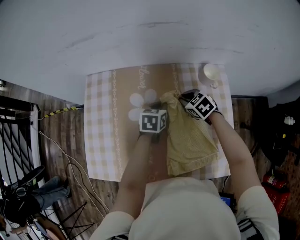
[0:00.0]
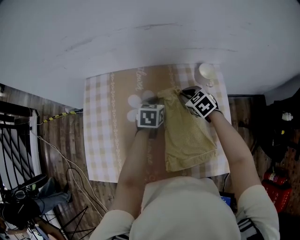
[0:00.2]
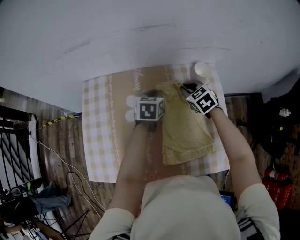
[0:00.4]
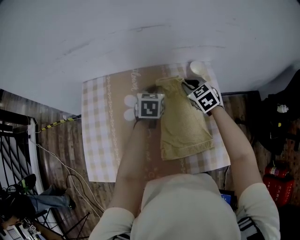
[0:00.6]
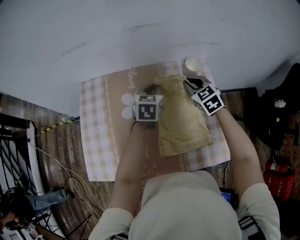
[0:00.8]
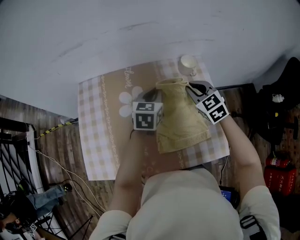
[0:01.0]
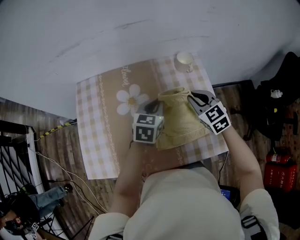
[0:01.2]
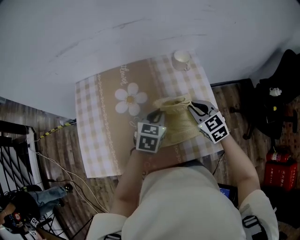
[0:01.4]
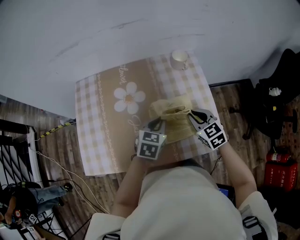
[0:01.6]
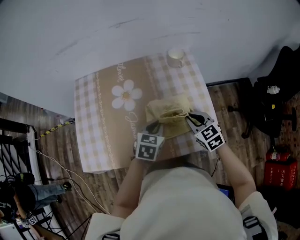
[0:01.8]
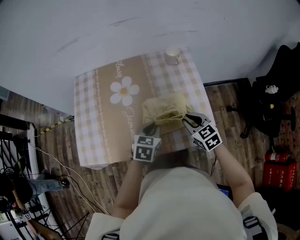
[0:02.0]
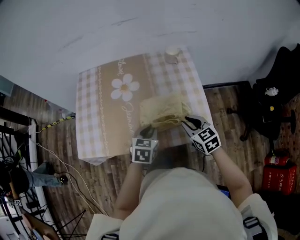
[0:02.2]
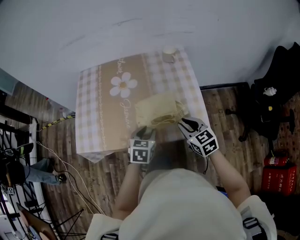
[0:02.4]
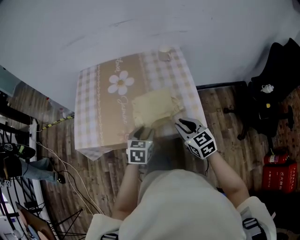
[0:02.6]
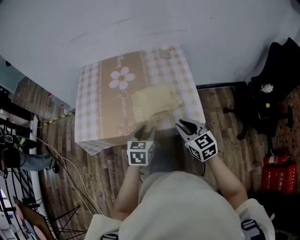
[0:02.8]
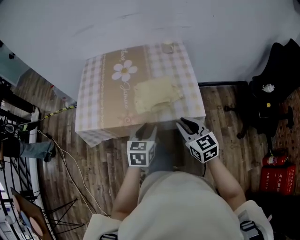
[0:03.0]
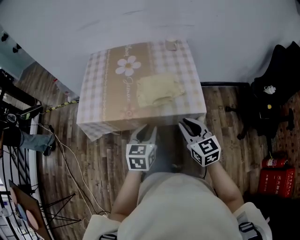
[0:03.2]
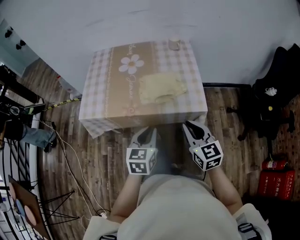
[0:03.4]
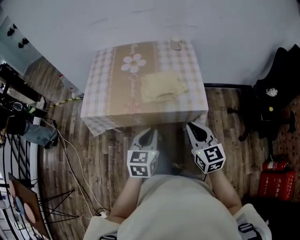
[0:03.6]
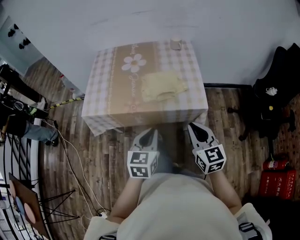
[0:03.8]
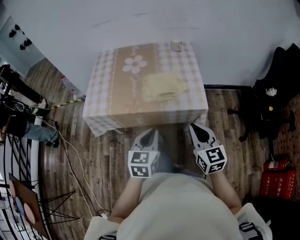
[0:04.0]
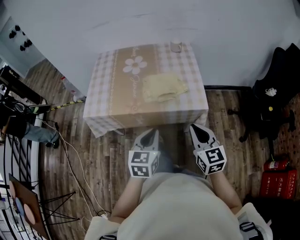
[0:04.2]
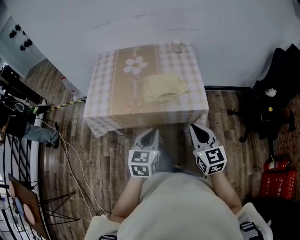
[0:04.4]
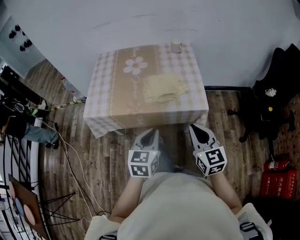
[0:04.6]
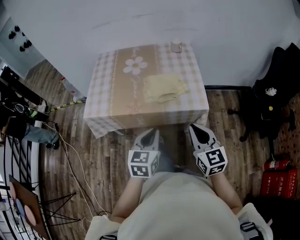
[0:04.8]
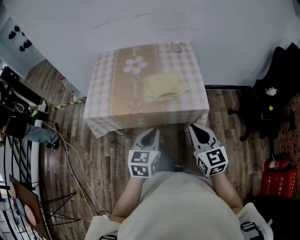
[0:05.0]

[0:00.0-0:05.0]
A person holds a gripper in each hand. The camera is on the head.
0:00.0 to 0:01.6: The right gripper is displaced backward, to the right and upward by approximately 25 cm, and turns by approximately 30 degrees. The left gripper shifts some 20 cm backward and upward, and rotates roughly 20 degrees.
0:01.6 to 0:03.4: Both grippers move backward, some 30 cm. The left gripper rotates approximately 20 degrees, and opens, then closes again.
0:03.4 to 0:05.0: The right gripper changes place by roughly 5 cm.

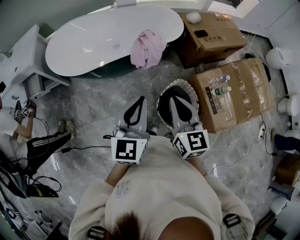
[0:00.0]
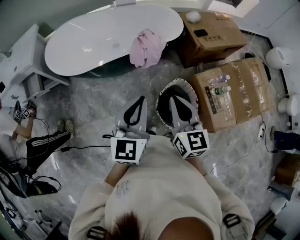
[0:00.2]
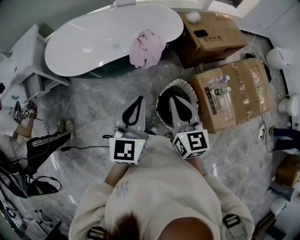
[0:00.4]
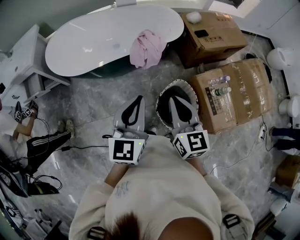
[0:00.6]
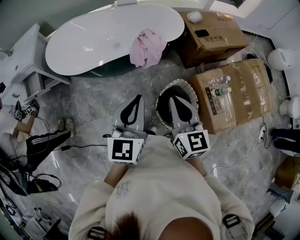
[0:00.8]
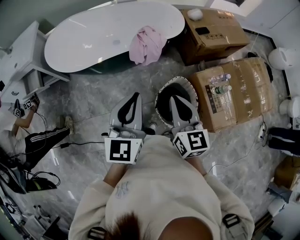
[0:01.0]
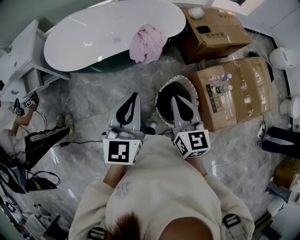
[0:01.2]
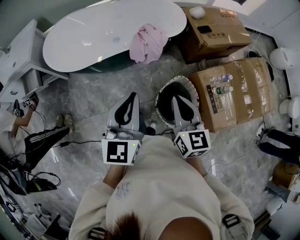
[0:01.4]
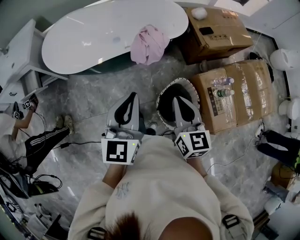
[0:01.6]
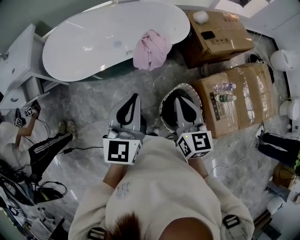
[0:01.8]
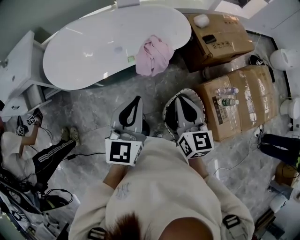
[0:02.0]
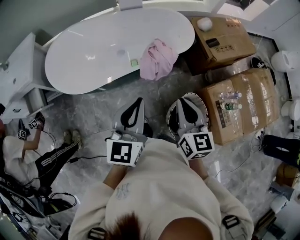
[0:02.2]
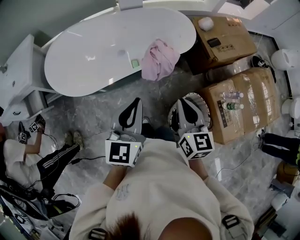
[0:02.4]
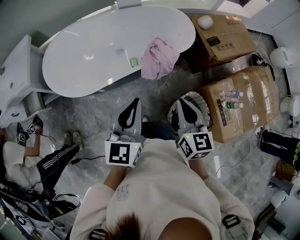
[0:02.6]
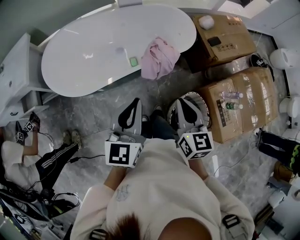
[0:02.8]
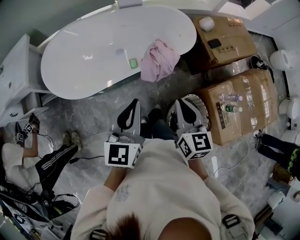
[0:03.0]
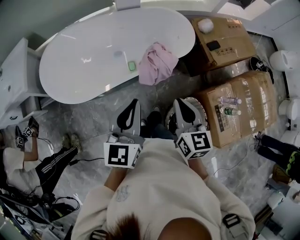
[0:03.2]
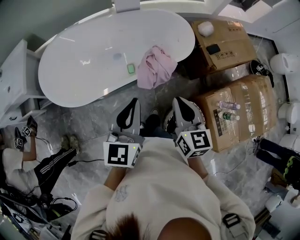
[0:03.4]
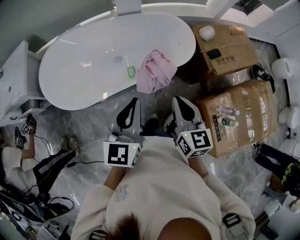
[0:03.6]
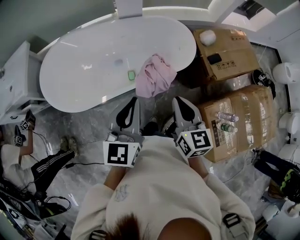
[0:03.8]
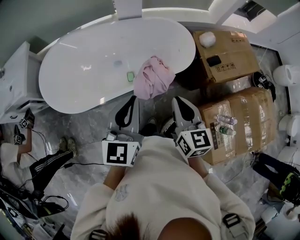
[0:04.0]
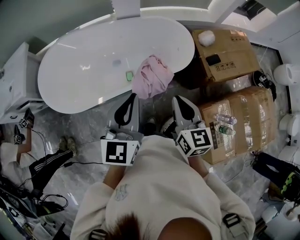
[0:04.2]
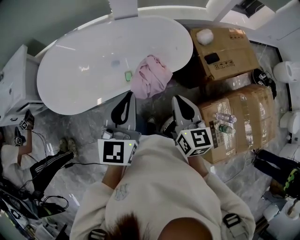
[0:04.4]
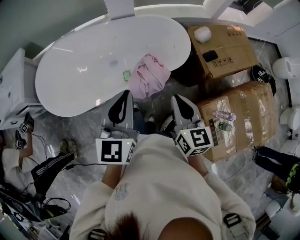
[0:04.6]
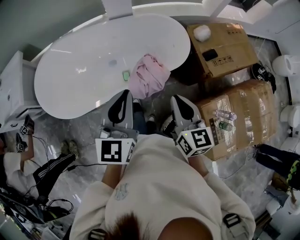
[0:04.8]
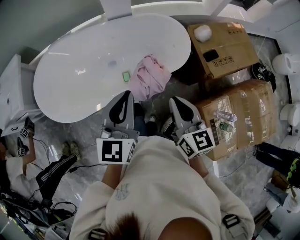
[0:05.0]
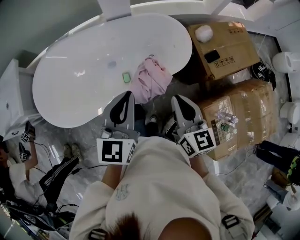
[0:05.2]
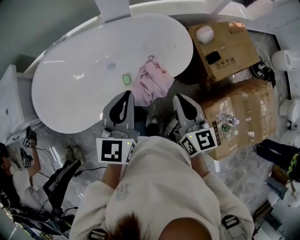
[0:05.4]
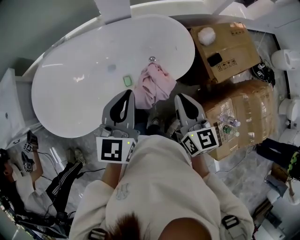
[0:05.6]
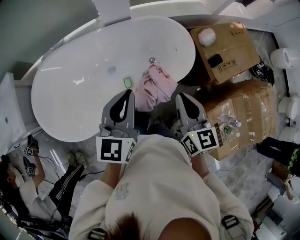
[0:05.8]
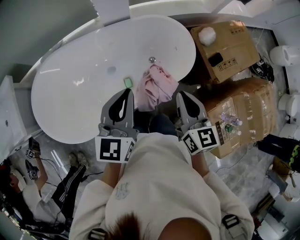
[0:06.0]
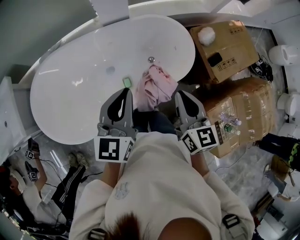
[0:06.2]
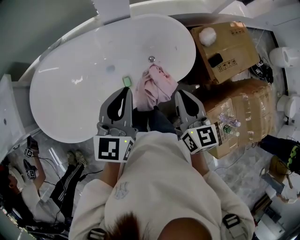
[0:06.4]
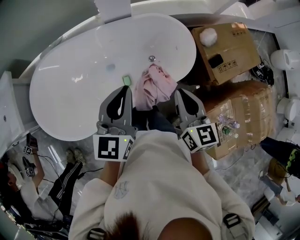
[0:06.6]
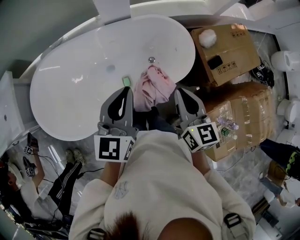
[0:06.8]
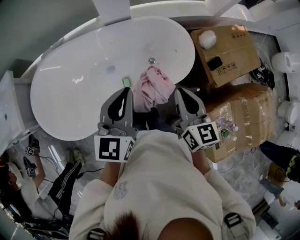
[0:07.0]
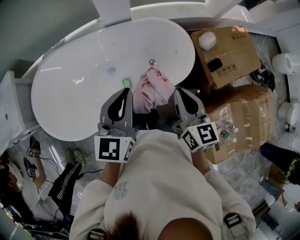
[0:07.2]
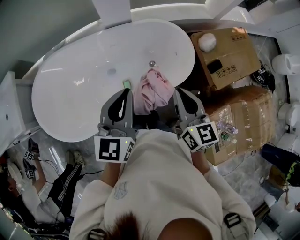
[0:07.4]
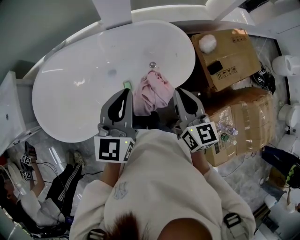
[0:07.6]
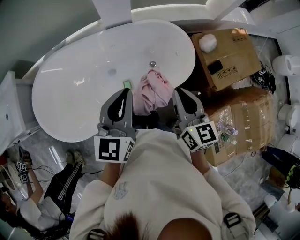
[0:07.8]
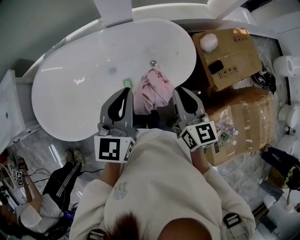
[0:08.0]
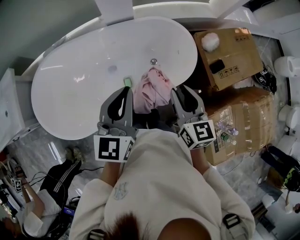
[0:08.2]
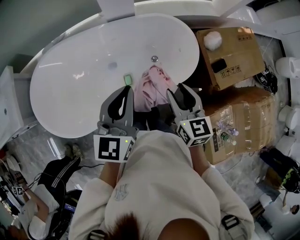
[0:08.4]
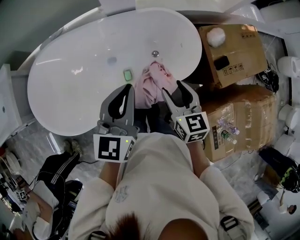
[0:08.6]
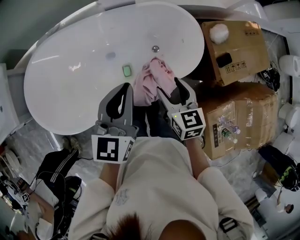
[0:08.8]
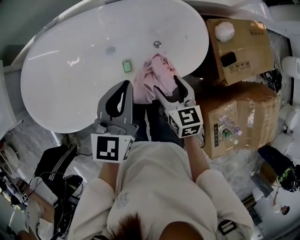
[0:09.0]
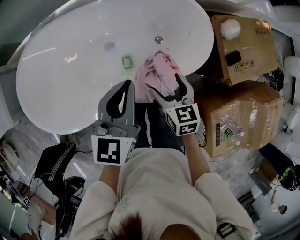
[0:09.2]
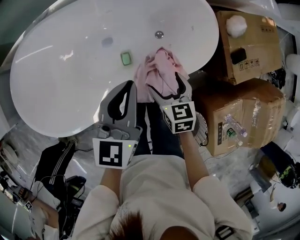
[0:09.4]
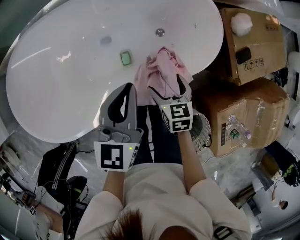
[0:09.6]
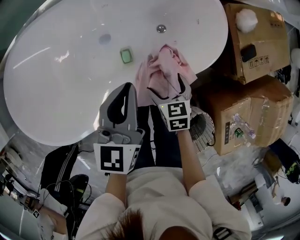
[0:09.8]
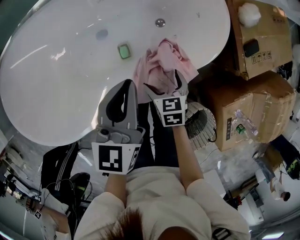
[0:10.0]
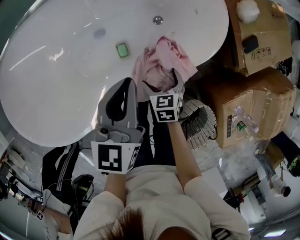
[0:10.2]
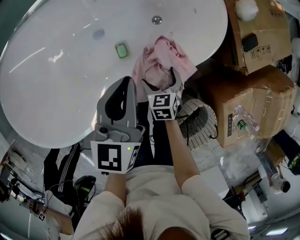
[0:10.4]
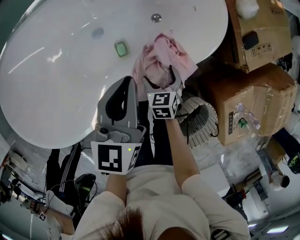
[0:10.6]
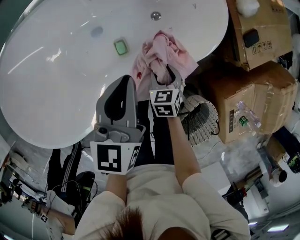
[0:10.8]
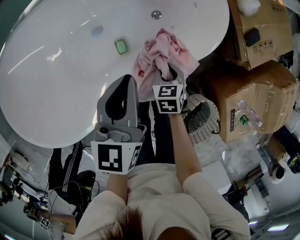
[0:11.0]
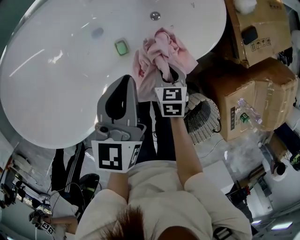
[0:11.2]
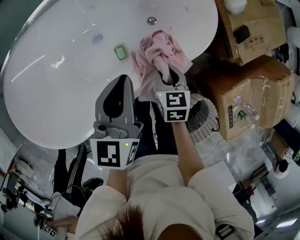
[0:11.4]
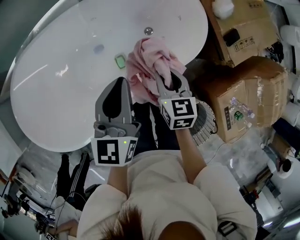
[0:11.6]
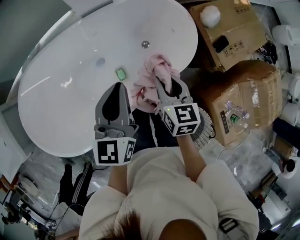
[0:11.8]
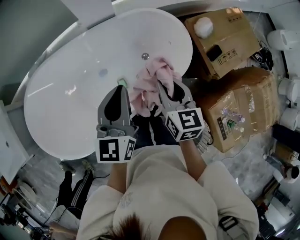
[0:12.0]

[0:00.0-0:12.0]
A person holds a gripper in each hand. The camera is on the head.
0:00.0 to 0:01.6: Both grippers move forward, approximately 5 cm.
0:01.6 to 0:03.0: The two grippers go some 20 cm forward and to the left.
0:03.0 to 0:04.4: The two grippers go some 15 cm forward and to the right.
0:04.4 to 0:06.0: Both grippers move forward, about 20 cm.
0:06.0 to 0:07.6: The grippers stay close to where they were, moving slightly.
0:07.6 to 0:09.0: The right gripper shifts roughly 15 cm downward, rotates about 20 degrees, and opens; the left gripper is displaced downward by about 10 cm.
0:09.0 to 0:10.4: The left gripper heads downward, covering roughly 15 cm. The right gripper is displaced downward by approximately 30 cm, rotates about 20 degrees, and opens up.
0:10.4 to 0:12.0: The left gripper shifts roughly 15 cm upward; the right gripper goes some 35 cm upward, tilts its fingers some 30 degrees upward, and closes up.

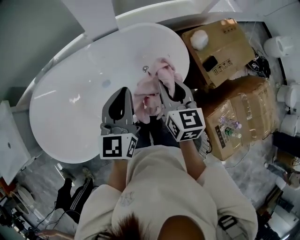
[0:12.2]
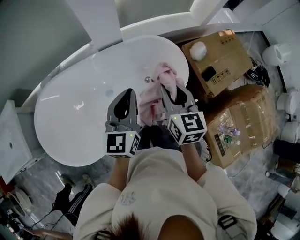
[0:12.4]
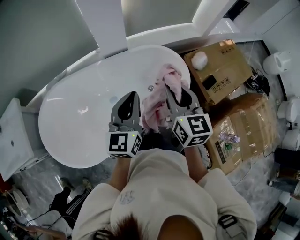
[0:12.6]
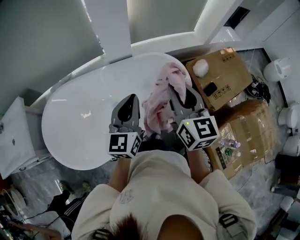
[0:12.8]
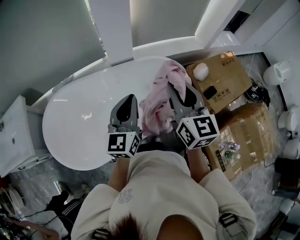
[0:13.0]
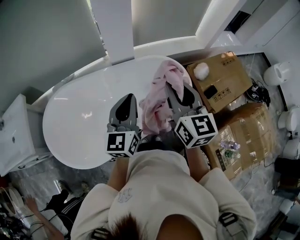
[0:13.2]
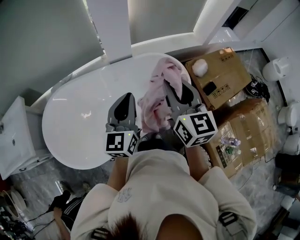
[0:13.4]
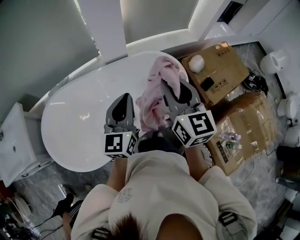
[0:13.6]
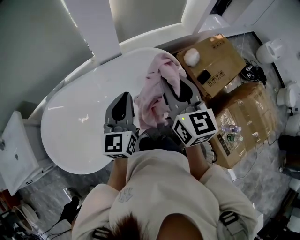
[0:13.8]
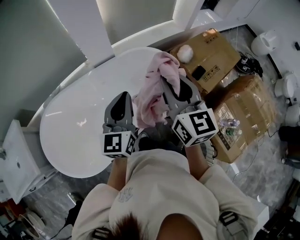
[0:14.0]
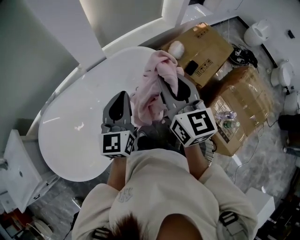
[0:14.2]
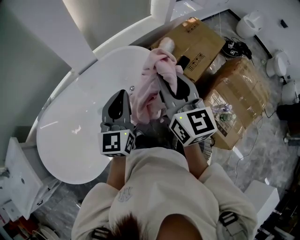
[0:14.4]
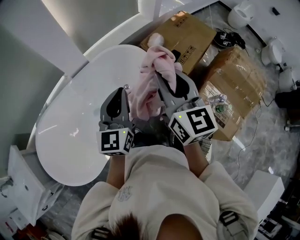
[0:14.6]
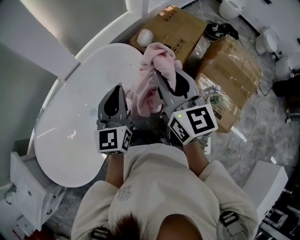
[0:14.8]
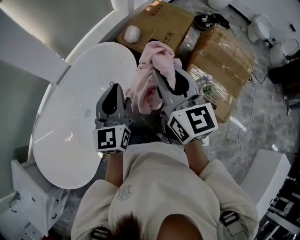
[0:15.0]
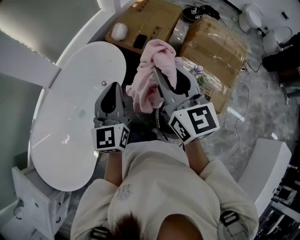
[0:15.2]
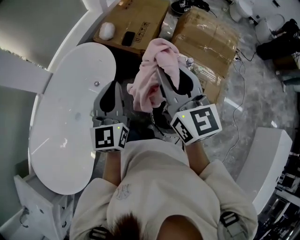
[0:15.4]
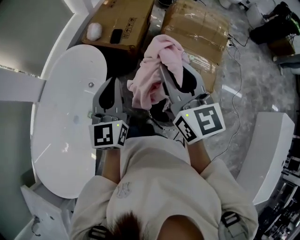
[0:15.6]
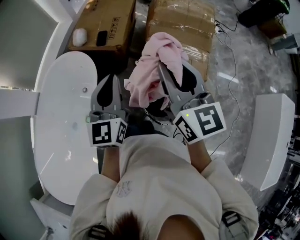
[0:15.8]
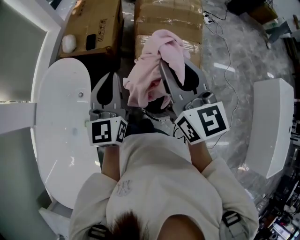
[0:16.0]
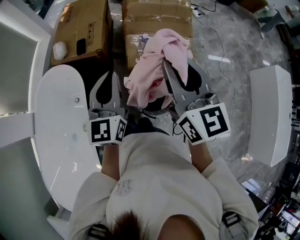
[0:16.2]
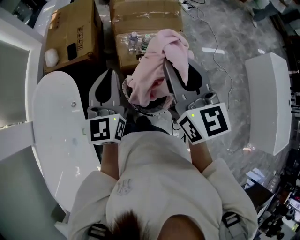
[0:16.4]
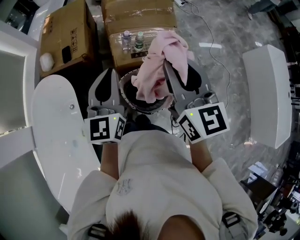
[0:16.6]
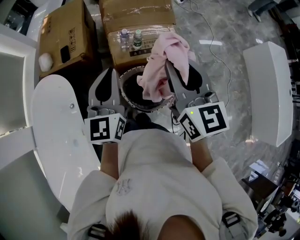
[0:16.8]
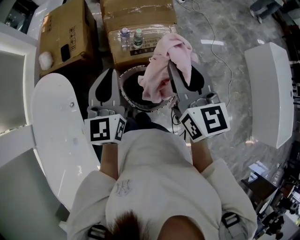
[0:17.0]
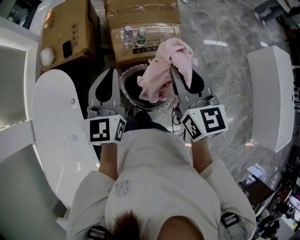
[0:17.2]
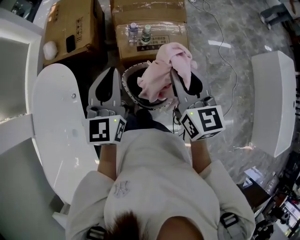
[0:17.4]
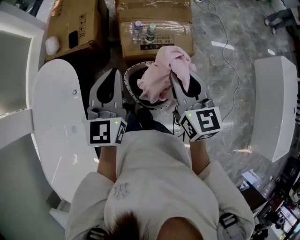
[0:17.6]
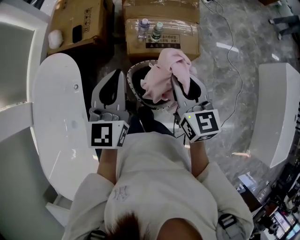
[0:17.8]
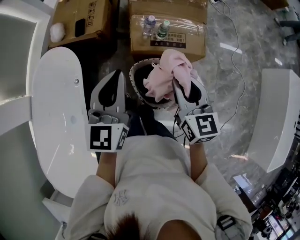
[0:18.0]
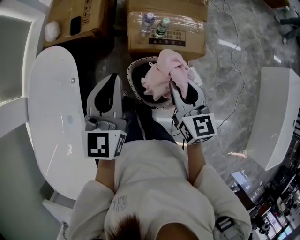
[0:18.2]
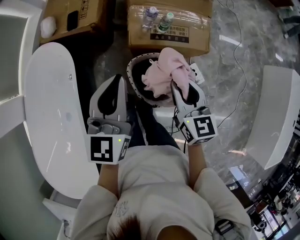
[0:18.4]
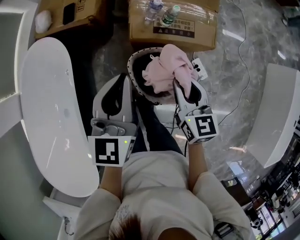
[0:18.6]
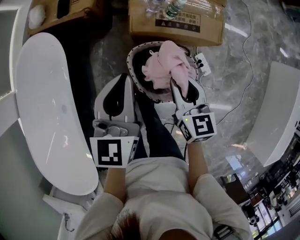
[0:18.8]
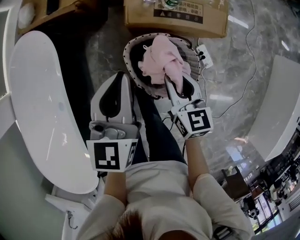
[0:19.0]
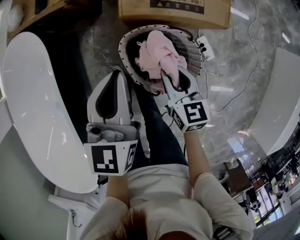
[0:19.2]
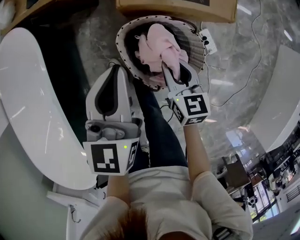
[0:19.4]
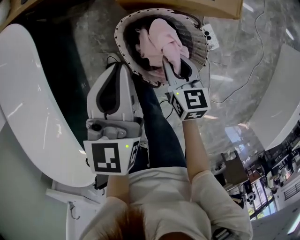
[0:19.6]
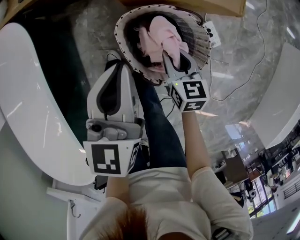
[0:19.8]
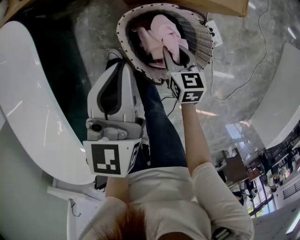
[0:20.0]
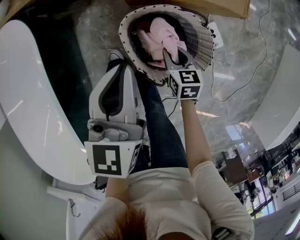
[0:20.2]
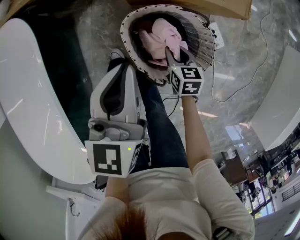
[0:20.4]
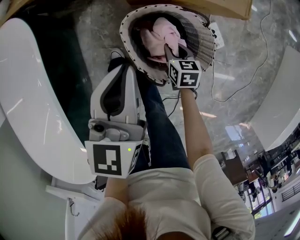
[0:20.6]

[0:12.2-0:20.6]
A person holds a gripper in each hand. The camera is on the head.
0:12.2 to 0:13.6: The left gripper moves upward, approximately 5 cm; the right gripper shifts about 15 cm upward.
0:13.6 to 0:15.0: The right gripper changes place by roughly 25 cm, and changes its angle by some 30 degrees; the left gripper ends up roughly 25 cm from where it was, and changes its angle by some 30 degrees.
0:15.0 to 0:16.4: The right gripper ends up some 35 cm from where it was, and changes its angle by some 40 degrees. The left gripper changes place by some 30 cm, and changes its angle by about 40 degrees.
0:16.4 to 0:17.8: The right gripper is displaced downward by some 15 cm.
0:17.8 to 0:19.2: Both grippers move downward, about 25 cm. The right gripper turns by approximately 20 degrees.
0:19.2 to 0:20.6: The right gripper moves downward, roughly 20 cm, and changes its angle by about 20 degrees, while the left gripper moves downward, some 5 cm.
